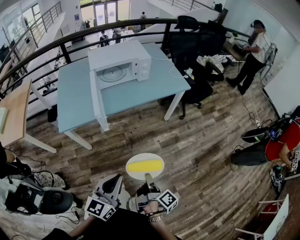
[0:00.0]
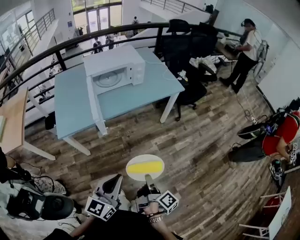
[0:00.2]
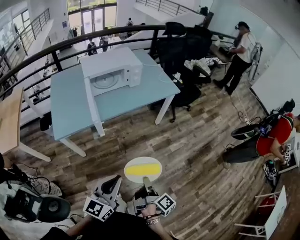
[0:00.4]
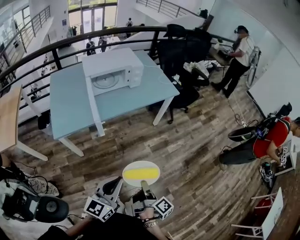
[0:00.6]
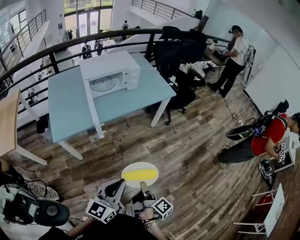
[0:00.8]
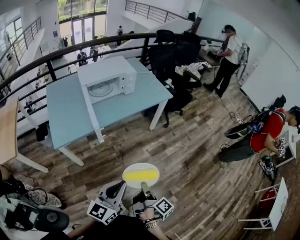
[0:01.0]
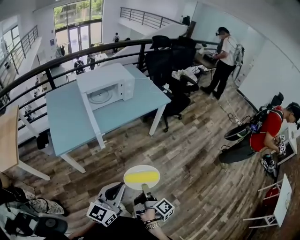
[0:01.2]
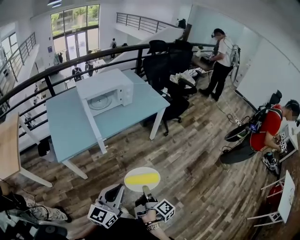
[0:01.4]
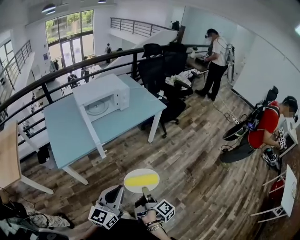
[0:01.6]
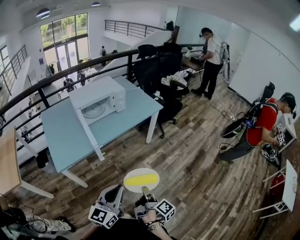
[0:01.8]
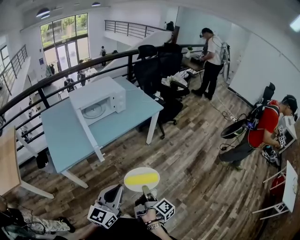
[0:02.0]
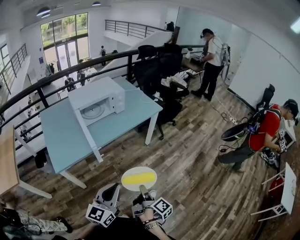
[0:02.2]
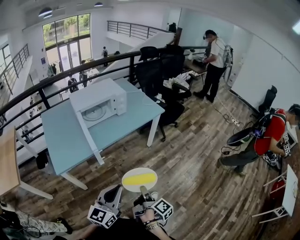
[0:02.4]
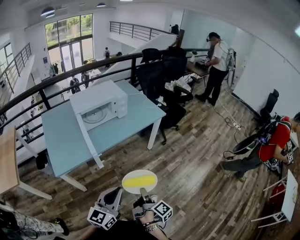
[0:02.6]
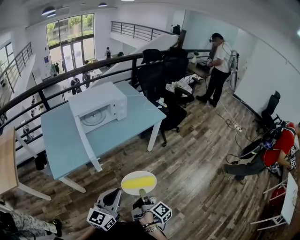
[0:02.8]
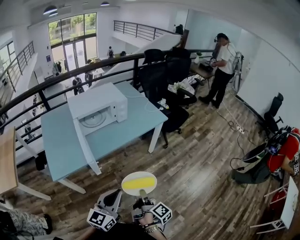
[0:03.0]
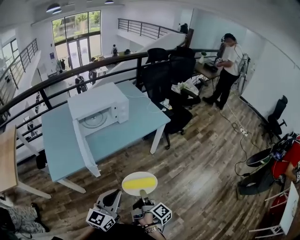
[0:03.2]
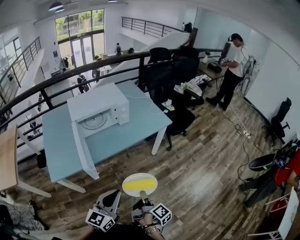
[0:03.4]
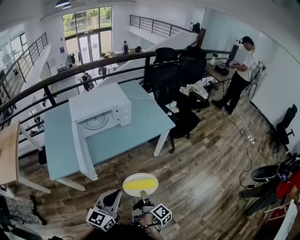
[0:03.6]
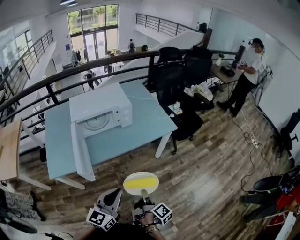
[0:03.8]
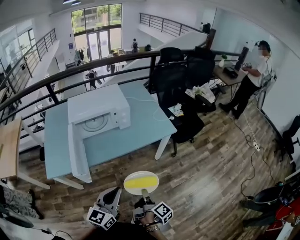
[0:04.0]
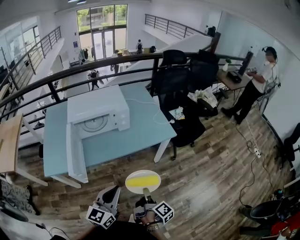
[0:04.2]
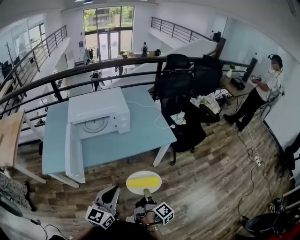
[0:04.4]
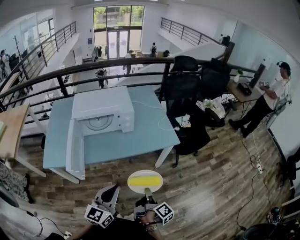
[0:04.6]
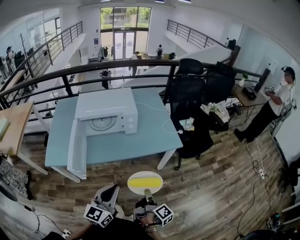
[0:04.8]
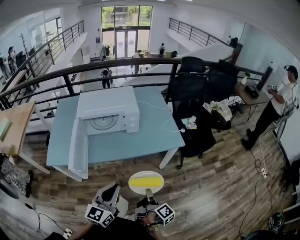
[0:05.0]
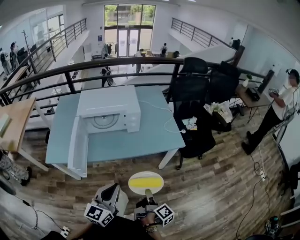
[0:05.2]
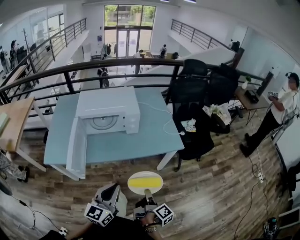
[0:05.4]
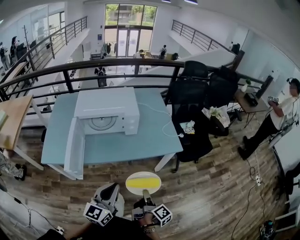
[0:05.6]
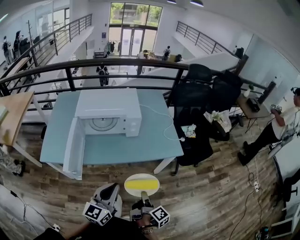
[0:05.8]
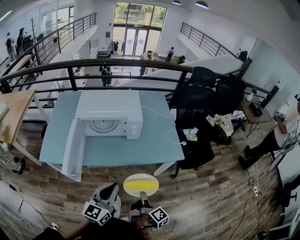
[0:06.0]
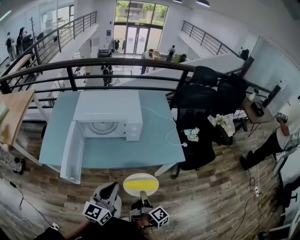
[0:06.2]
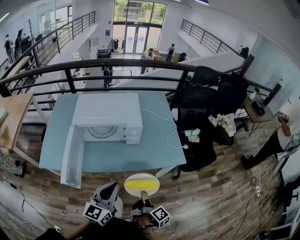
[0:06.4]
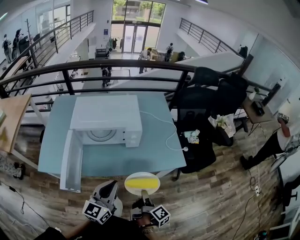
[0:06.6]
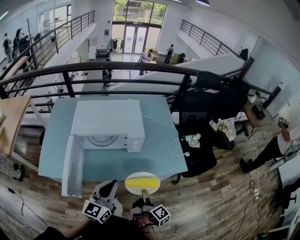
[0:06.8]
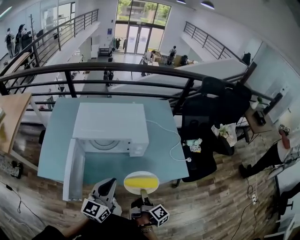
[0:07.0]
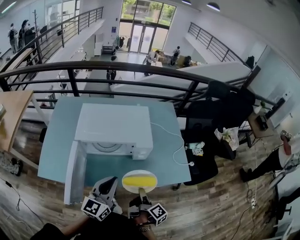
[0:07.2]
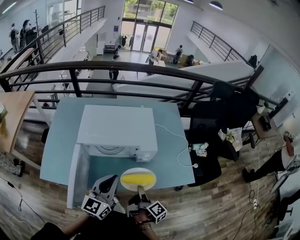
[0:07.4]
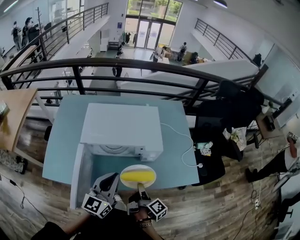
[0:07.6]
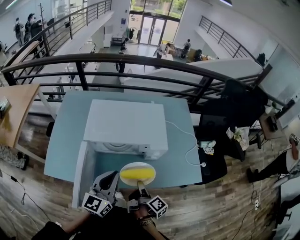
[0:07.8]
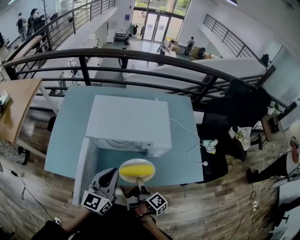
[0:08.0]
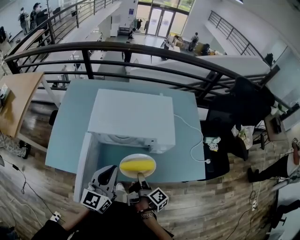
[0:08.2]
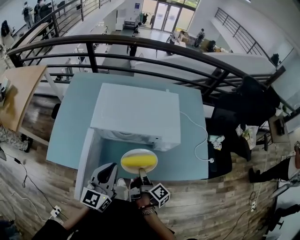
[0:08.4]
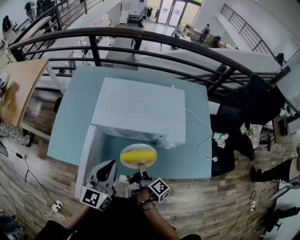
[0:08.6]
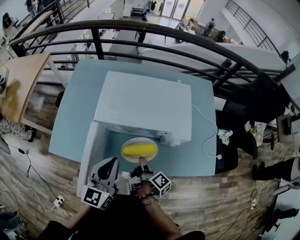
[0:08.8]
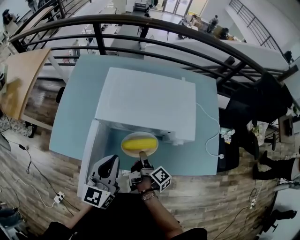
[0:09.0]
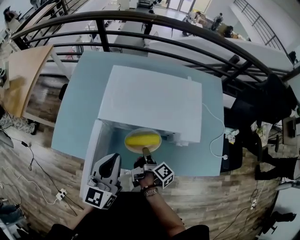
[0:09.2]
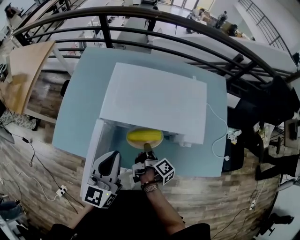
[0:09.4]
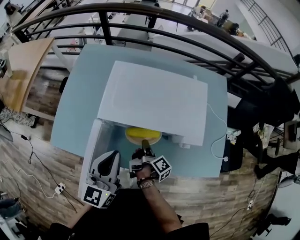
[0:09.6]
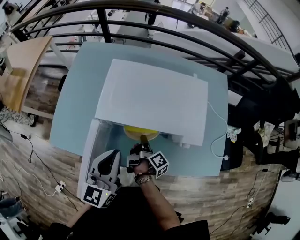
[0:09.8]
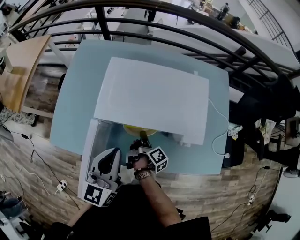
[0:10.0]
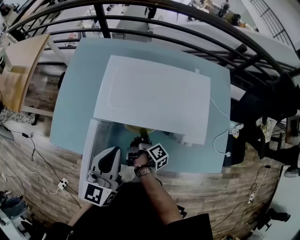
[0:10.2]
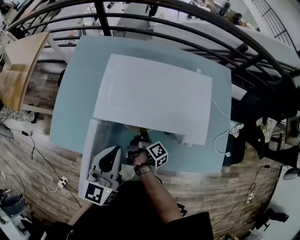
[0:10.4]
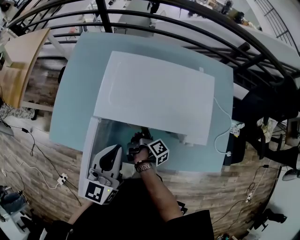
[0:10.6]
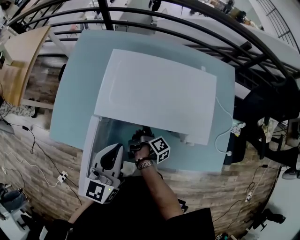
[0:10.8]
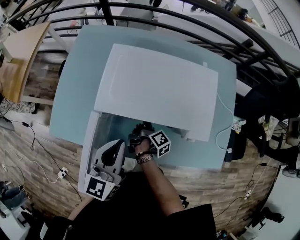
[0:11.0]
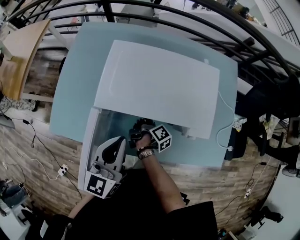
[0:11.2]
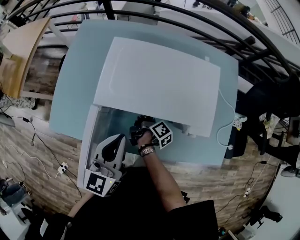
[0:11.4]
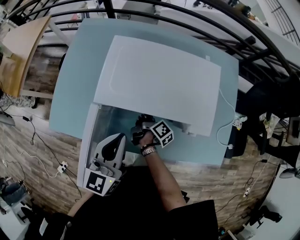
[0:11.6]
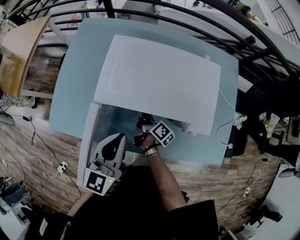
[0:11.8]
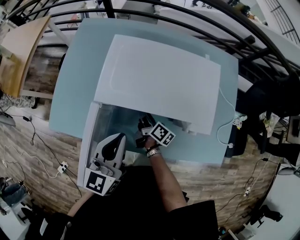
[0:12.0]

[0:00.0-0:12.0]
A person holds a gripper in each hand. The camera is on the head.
0:00.0 to 0:01.6: The left gripper shifts by approximately 5 cm.
0:01.6 to 0:03.0: The left gripper ends up about 10 cm from where it was.
0:03.0 to 0:04.4: The left gripper moves about 25 cm.
0:04.4 to 0:06.0: The left gripper moves approximately 10 cm.
0:06.0 to 0:07.6: The left gripper moves roughly 25 cm.
0:07.6 to 0:09.0: The left gripper changes place by some 10 cm.
0:09.0 to 0:10.4: The left gripper changes place by some 5 cm.

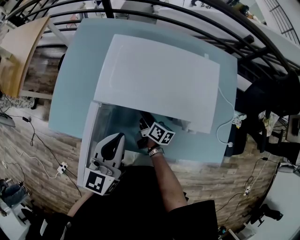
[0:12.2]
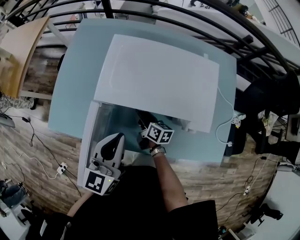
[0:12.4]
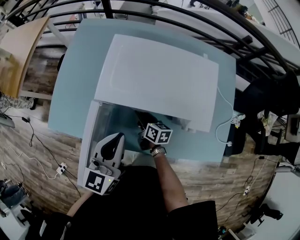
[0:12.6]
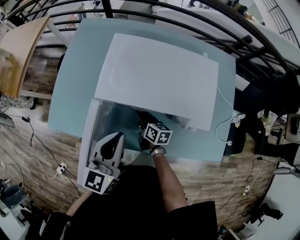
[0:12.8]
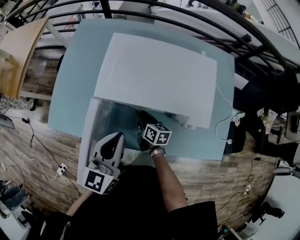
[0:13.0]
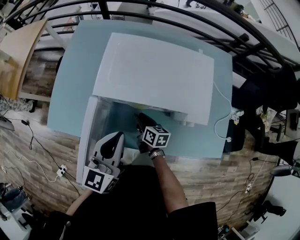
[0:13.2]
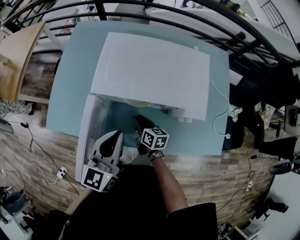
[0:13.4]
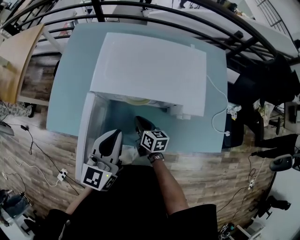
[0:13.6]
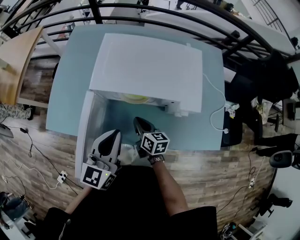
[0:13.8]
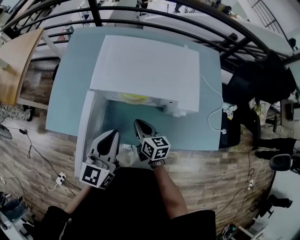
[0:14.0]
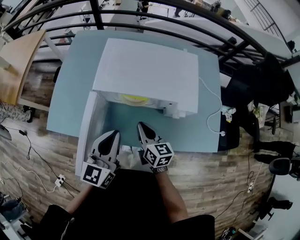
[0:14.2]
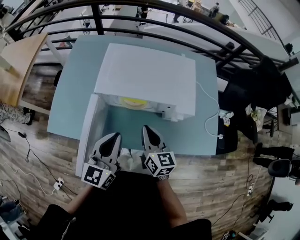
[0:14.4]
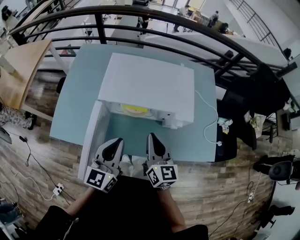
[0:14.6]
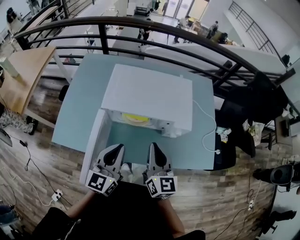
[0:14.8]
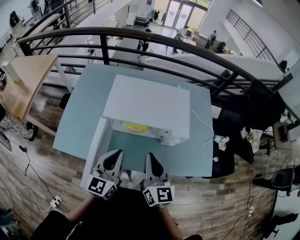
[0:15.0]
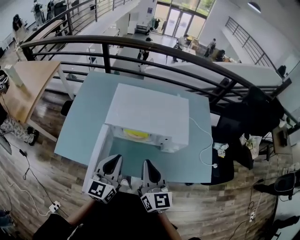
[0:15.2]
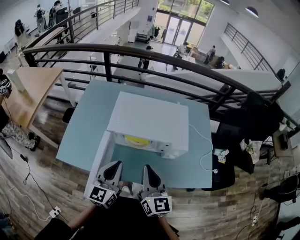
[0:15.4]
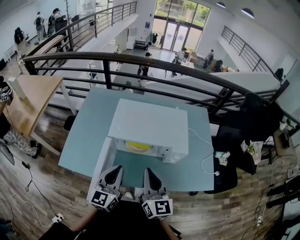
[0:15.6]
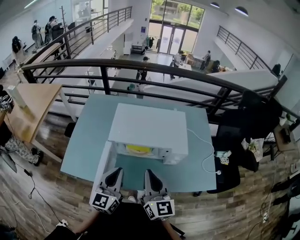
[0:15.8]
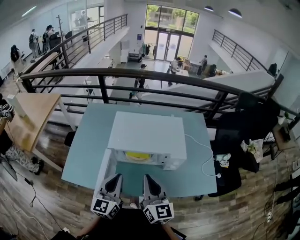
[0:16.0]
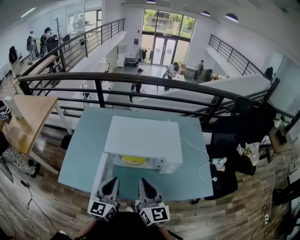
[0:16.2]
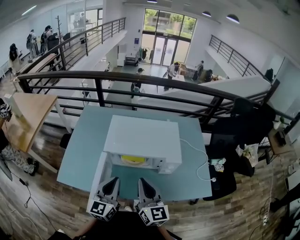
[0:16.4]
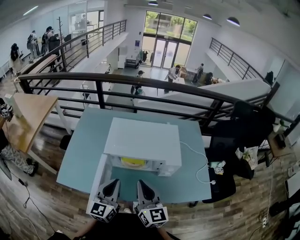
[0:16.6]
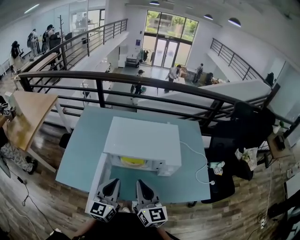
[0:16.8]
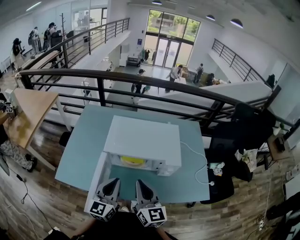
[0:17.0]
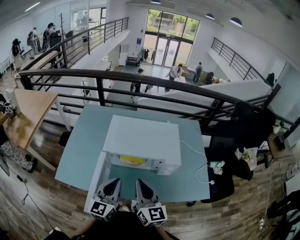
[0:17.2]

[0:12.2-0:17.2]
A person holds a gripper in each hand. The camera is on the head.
0:12.2 to 0:13.8: The left gripper moves about 5 cm.
0:13.8 to 0:15.6: The left gripper shifts by roughly 5 cm.

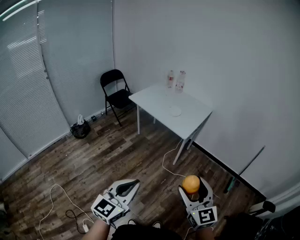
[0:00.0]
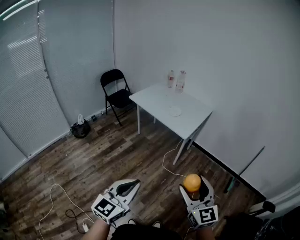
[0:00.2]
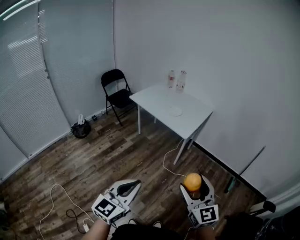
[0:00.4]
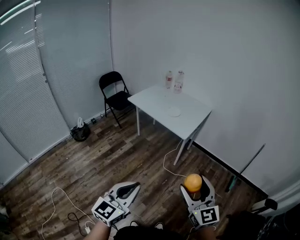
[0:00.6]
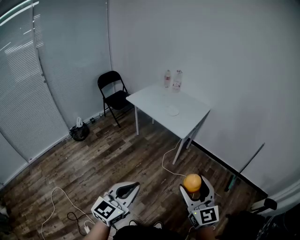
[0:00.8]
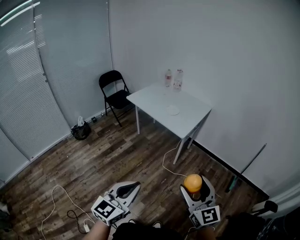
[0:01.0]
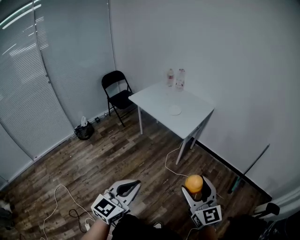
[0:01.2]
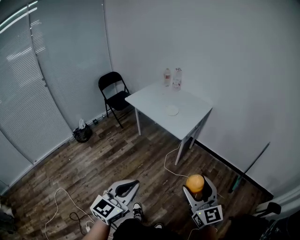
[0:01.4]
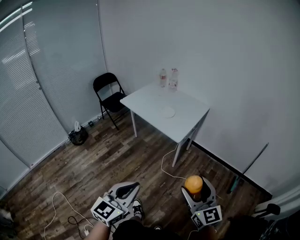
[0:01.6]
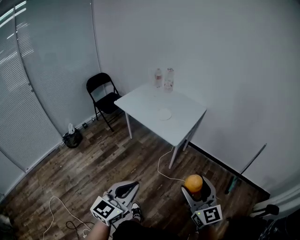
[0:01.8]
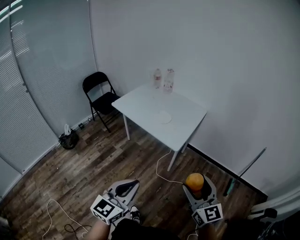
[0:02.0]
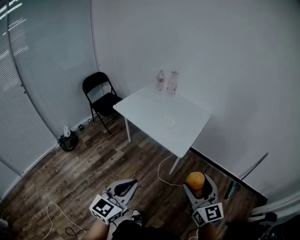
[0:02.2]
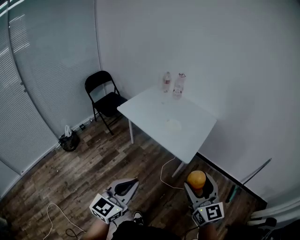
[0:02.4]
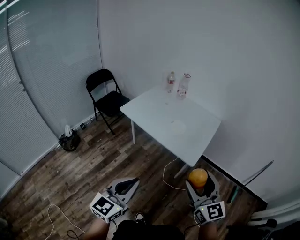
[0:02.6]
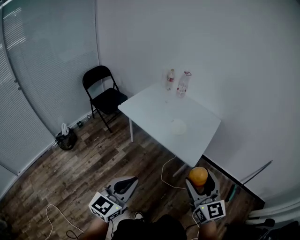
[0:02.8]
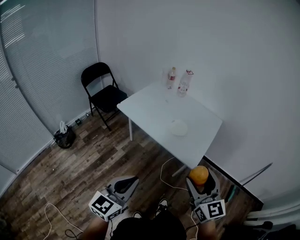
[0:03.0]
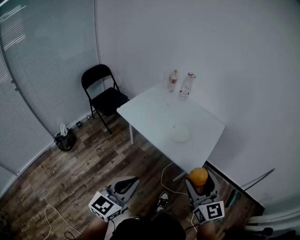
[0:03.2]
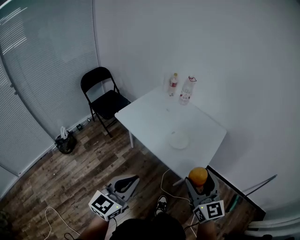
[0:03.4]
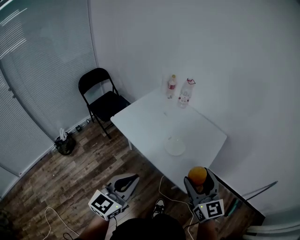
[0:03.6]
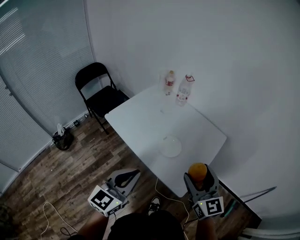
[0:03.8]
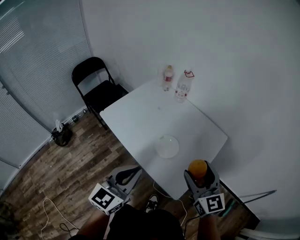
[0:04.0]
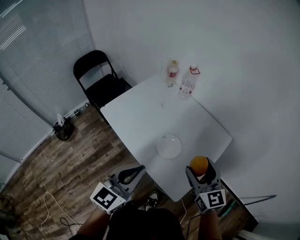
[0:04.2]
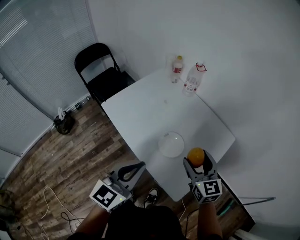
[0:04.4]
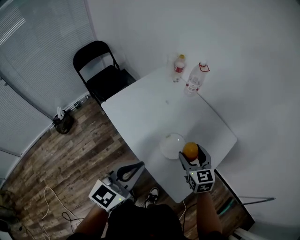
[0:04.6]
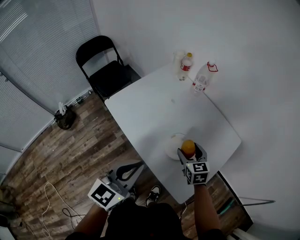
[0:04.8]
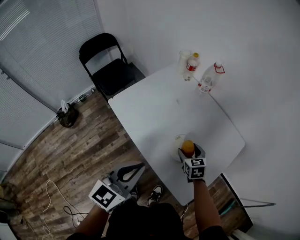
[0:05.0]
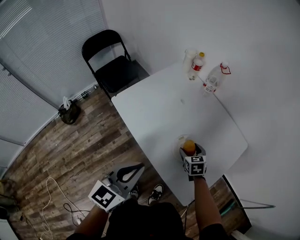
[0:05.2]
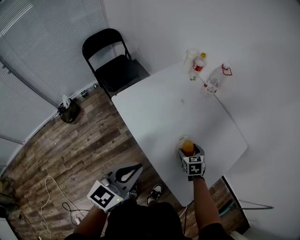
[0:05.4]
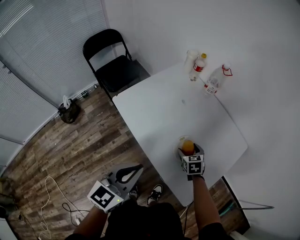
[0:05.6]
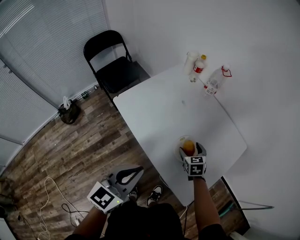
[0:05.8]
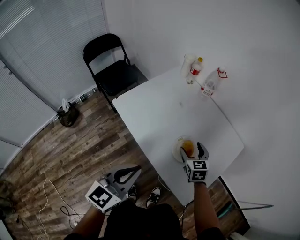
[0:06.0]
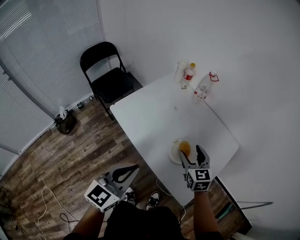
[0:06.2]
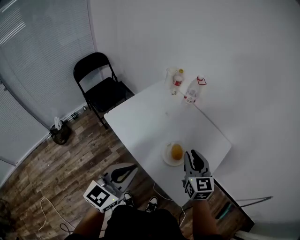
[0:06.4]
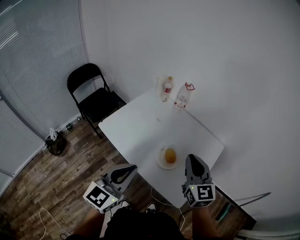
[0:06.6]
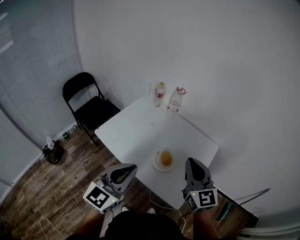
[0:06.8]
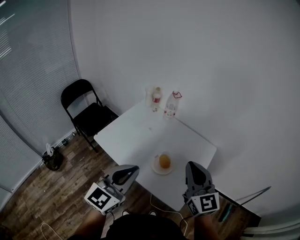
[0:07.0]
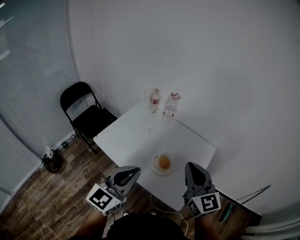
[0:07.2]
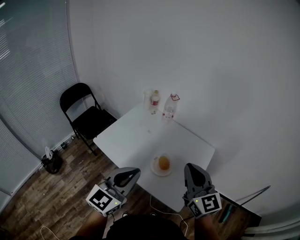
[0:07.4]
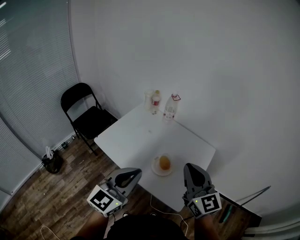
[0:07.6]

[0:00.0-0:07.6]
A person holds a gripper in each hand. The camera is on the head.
0:00.0 to 0:01.6: The two grippers go some 15 cm forward and to the right.
0:01.6 to 0:03.0: Both grippers move forward and to the left, some 40 cm.
0:03.0 to 0:04.6: Both grippers move forward, roughly 40 cm. The right gripper changes its angle by about 30 degrees.
0:04.6 to 0:06.0: The left gripper travels to the left by roughly 10 cm, while the right gripper shifts roughly 10 cm downward and to the left.
0:06.0 to 0:07.6: The left gripper travels upward and to the right by about 15 cm, and changes its angle by roughly 20 degrees. Meanwhile the right gripper goes some 35 cm upward and backward, tips its fingers upward by approximately 40 degrees, and closes up.
